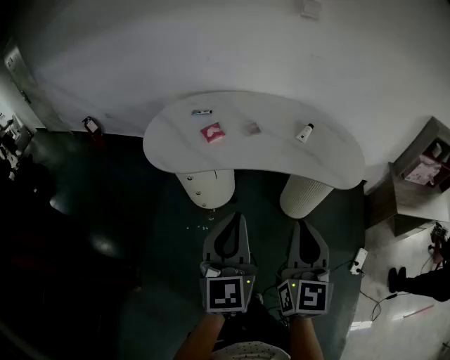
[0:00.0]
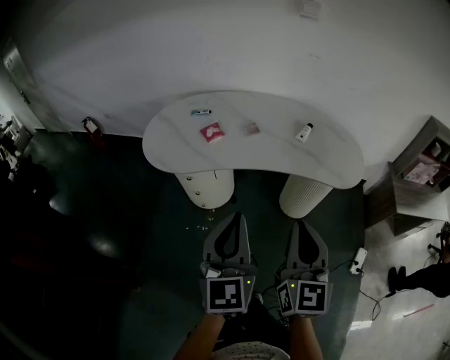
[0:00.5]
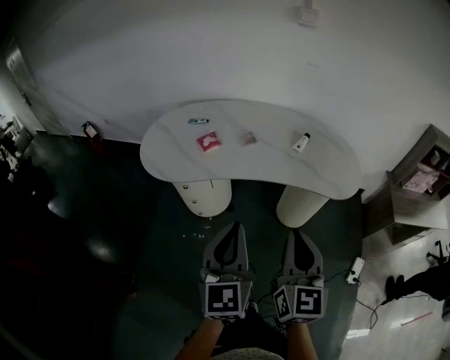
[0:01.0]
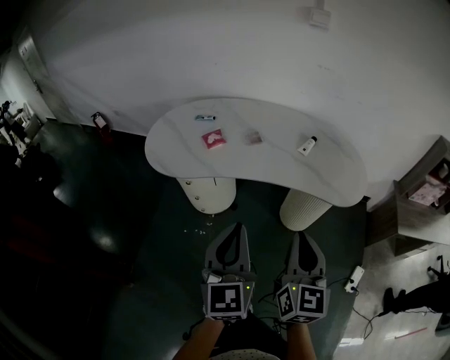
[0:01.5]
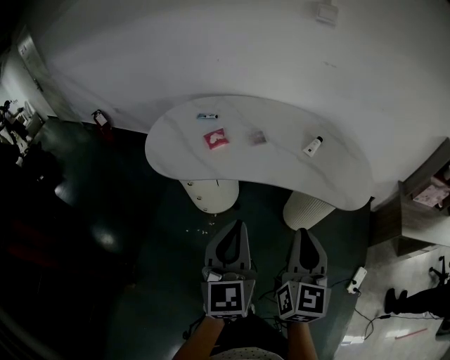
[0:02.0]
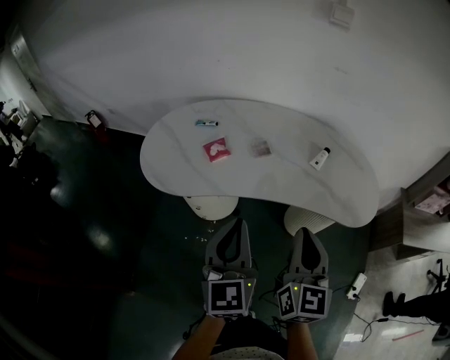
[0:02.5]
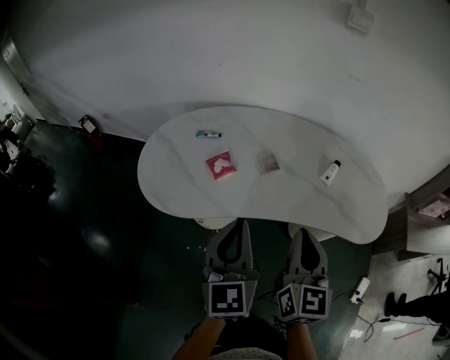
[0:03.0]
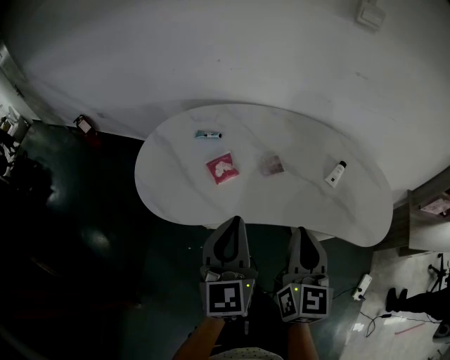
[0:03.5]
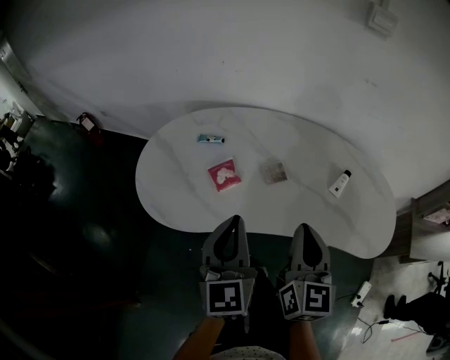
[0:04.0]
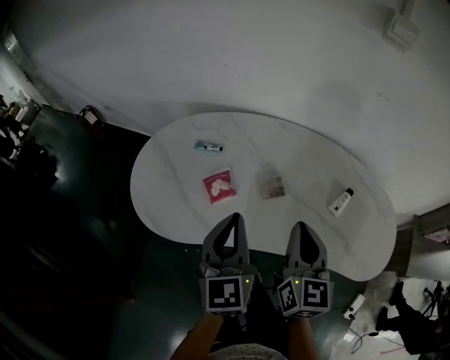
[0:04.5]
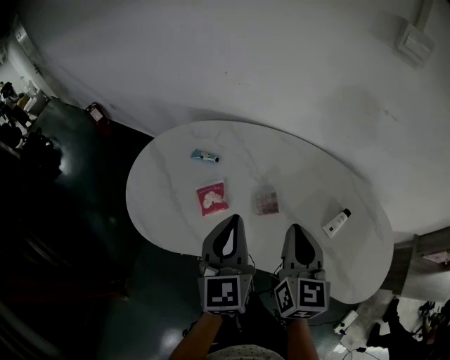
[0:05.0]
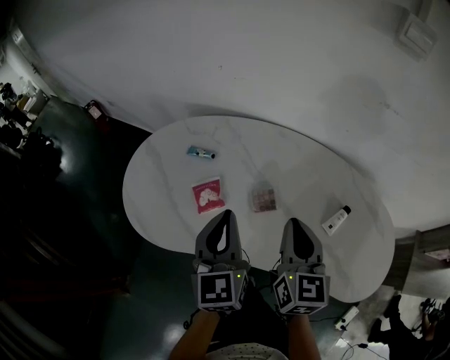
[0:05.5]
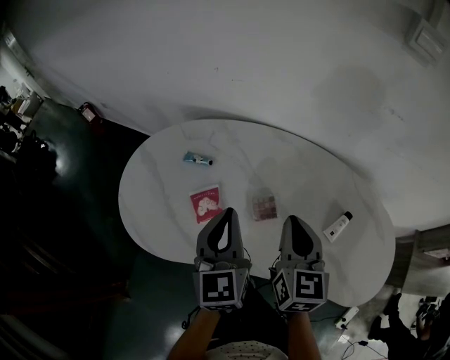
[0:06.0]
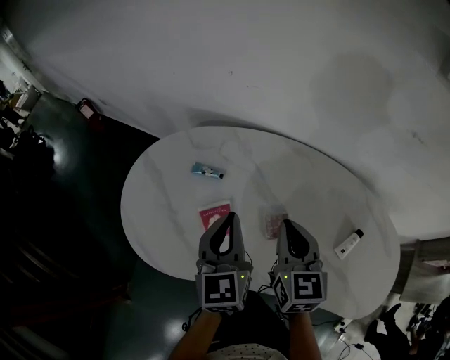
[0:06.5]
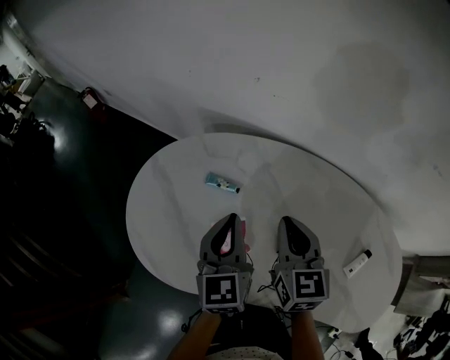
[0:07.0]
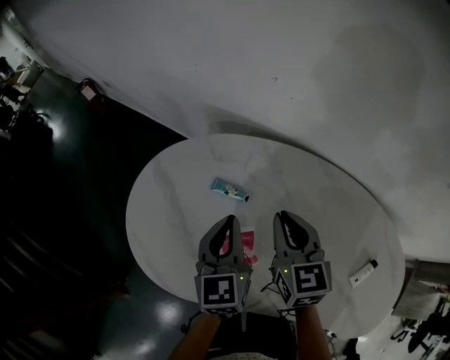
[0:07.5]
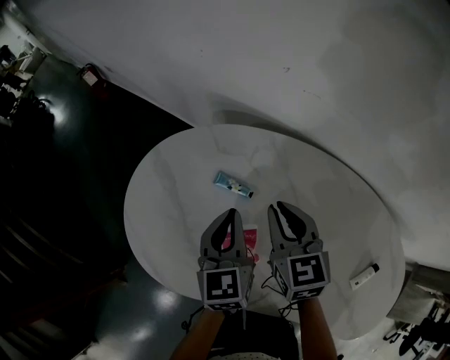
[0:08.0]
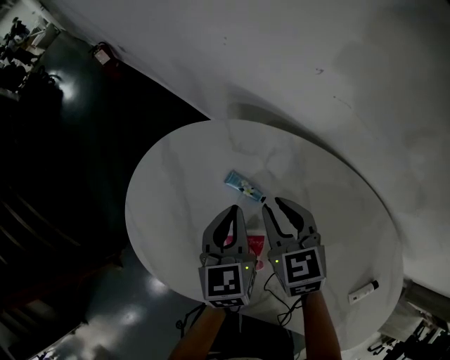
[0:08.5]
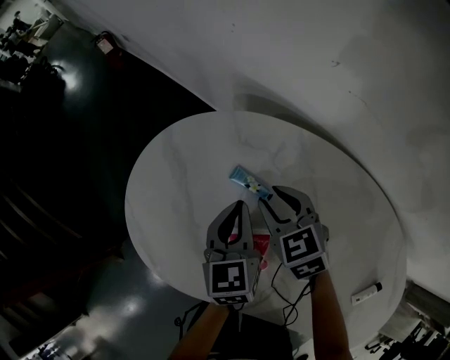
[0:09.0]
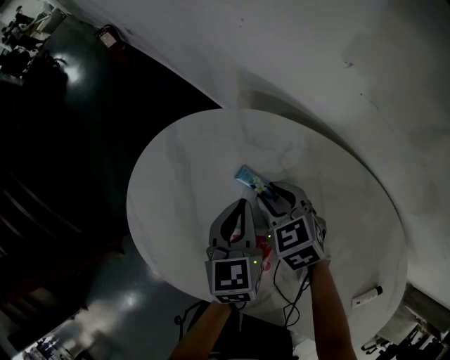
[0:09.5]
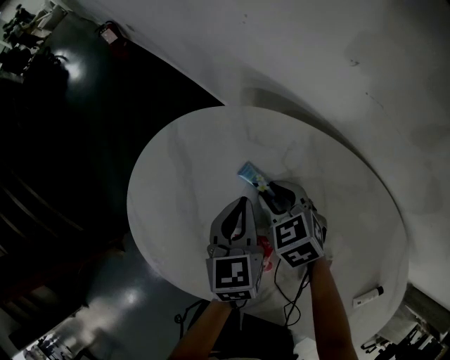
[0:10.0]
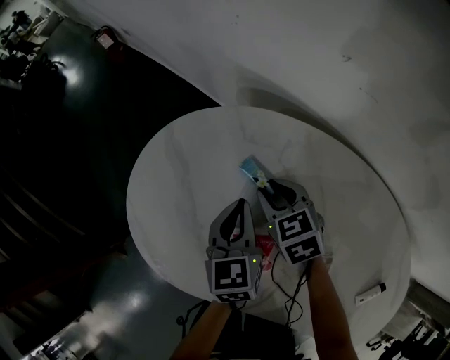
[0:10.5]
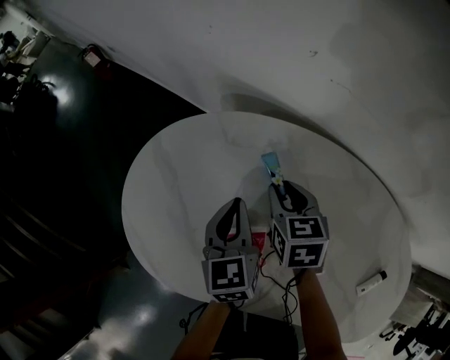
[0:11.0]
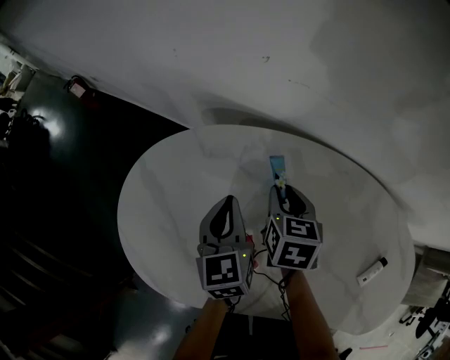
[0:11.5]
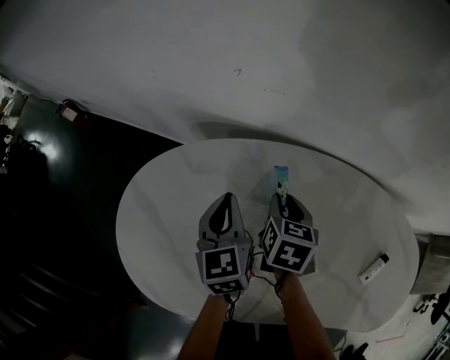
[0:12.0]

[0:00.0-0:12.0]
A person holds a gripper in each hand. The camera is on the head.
0:00.0 to 0:02.0: The grippers both shift forward by about 5 cm.
0:02.0 to 0:04.0: The grippers both shift forward by about 25 cm.
0:04.0 to 0:06.0: The two grippers go about 20 cm forward.
0:06.0 to 0:08.0: The right gripper travels forward and to the left by about 25 cm, and rotates roughly 30 degrees; the left gripper is displaced forward, to the left and downward by roughly 25 cm.
0:08.0 to 0:10.0: The right gripper is displaced downward, to the left and forward by some 15 cm, and rotates about 40 degrees; the left gripper moves downward, some 5 cm.
0:10.0 to 0:12.0: The right gripper shifts by some 20 cm, and twists roughly 60 degrees clockwise, seen from behind. Meanwhile the left gripper ends up roughly 10 cm from where it was.

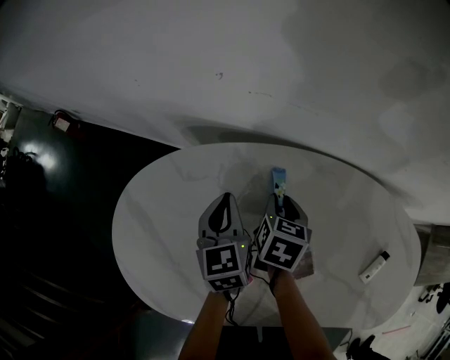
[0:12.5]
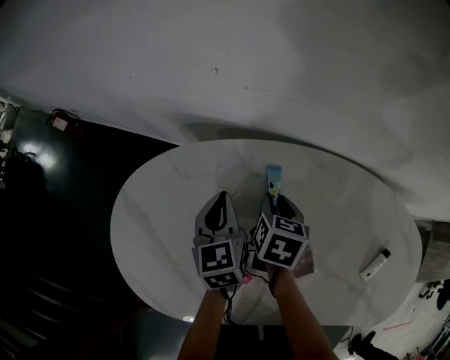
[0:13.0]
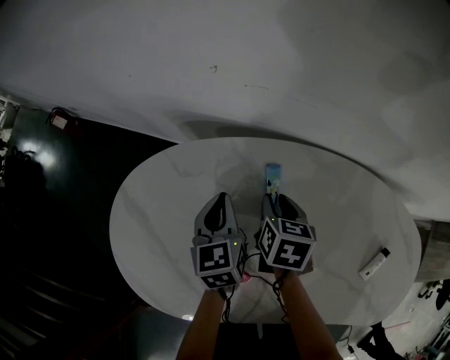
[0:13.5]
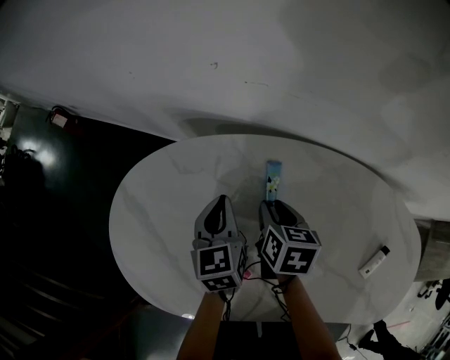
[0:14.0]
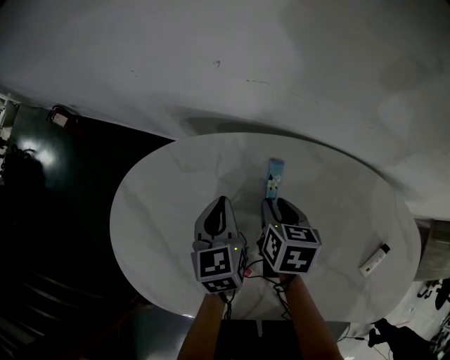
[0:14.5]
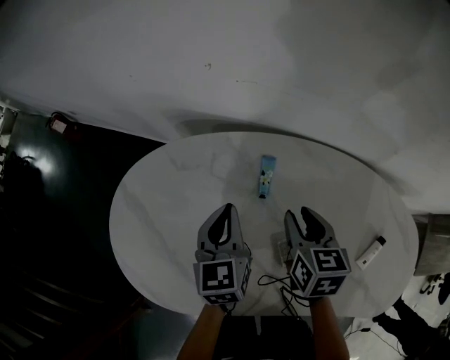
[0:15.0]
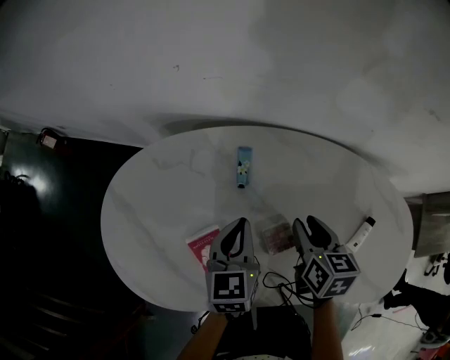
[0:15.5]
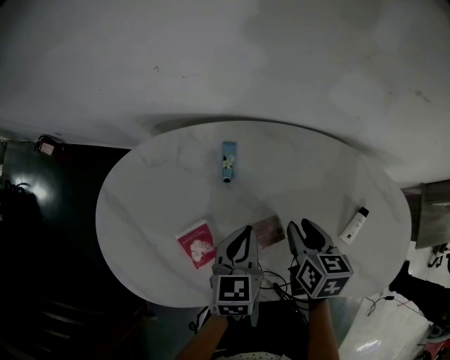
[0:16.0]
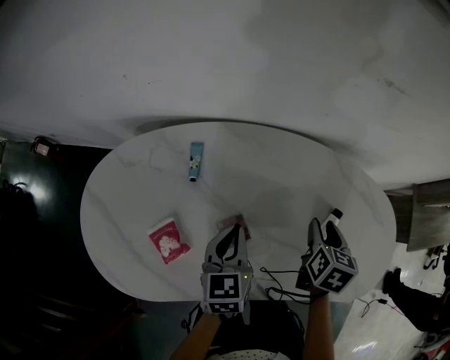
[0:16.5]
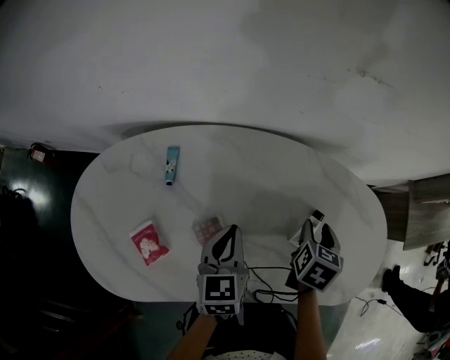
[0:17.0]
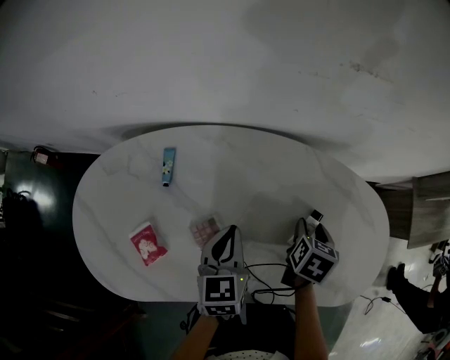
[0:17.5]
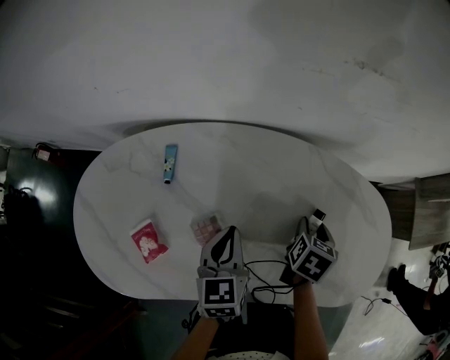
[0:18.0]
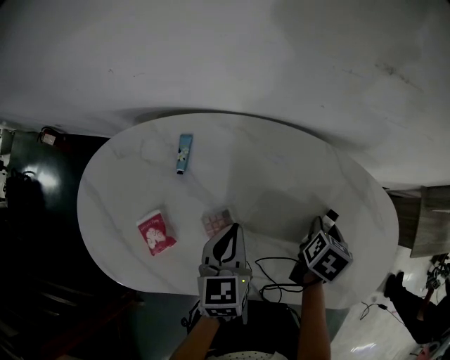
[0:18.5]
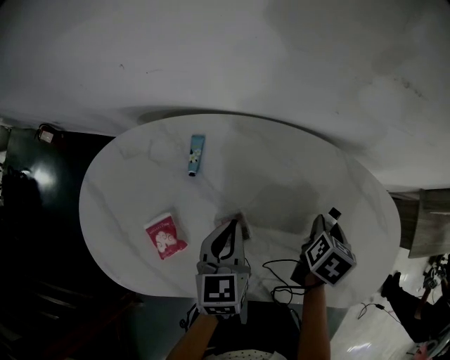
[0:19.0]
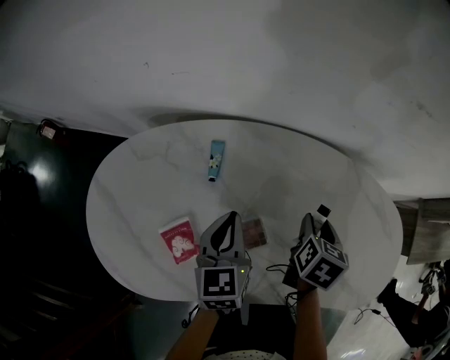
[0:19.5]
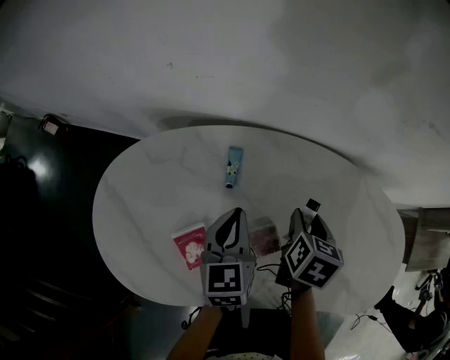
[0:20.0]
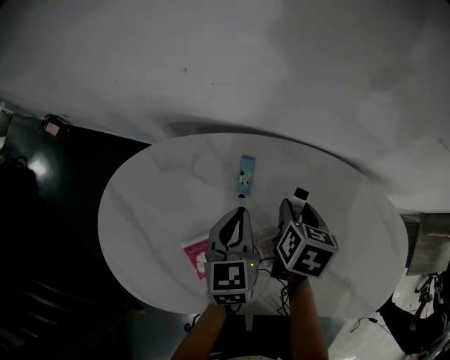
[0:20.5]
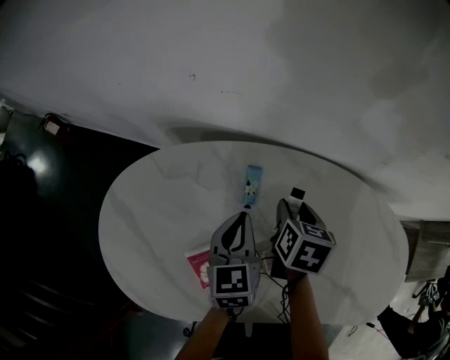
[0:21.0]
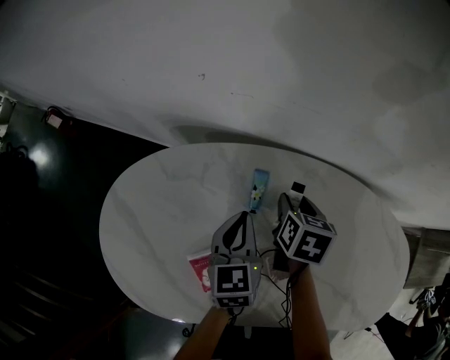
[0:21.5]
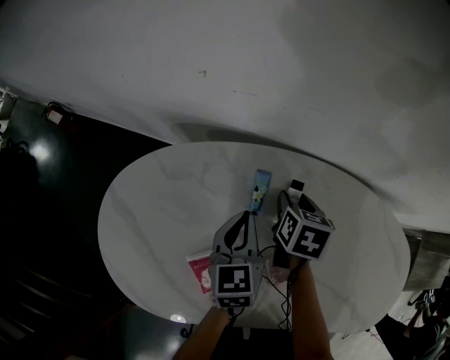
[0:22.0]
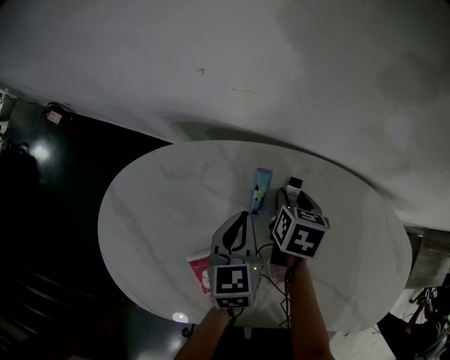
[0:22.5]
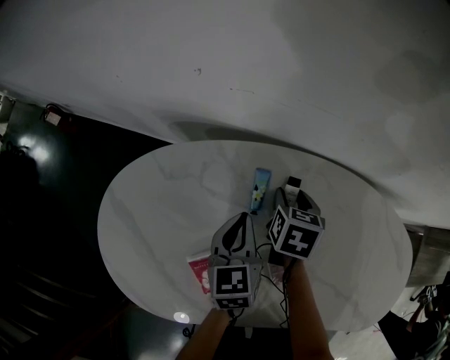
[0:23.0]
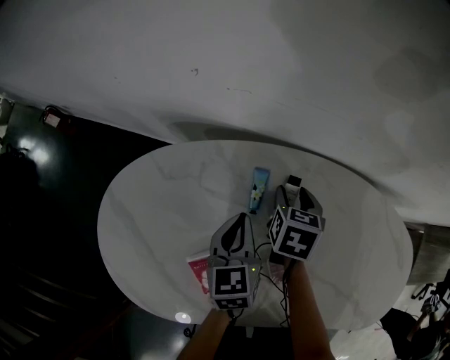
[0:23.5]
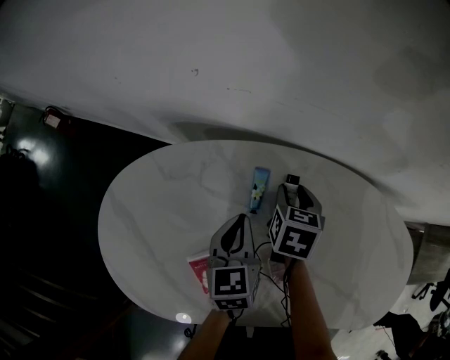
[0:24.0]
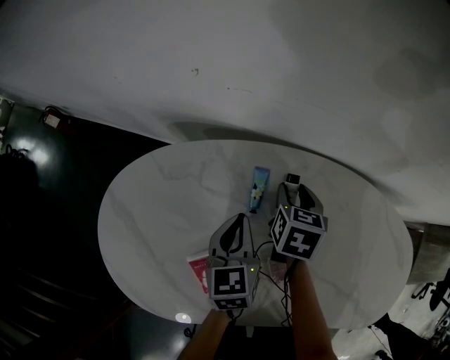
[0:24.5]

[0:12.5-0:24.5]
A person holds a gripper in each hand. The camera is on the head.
0:12.5 to 0:14.5: The grippers make only small movements.
0:14.5 to 0:16.5: The left gripper moves about 25 cm, and rotates roughly 20 degrees. The right gripper moves roughly 35 cm, and rotates approximately 30 degrees.
0:16.5 to 0:18.5: The right gripper moves downward and to the right, about 10 cm.
0:18.5 to 0:20.5: The right gripper moves to the left, approximately 30 cm, and changes its angle by approximately 20 degrees. Meanwhile the left gripper shifts approximately 15 cm to the left.
0:20.5 to 0:22.5: The left gripper moves about 5 cm. Meanwhile the right gripper goes roughly 10 cm forward and downward.
0:22.5 to 0:24.5: The grippers move only a little.

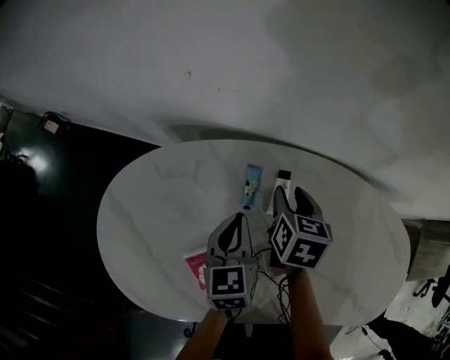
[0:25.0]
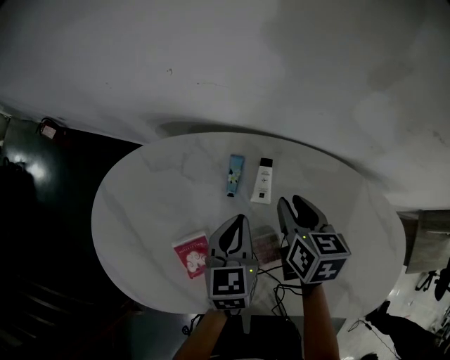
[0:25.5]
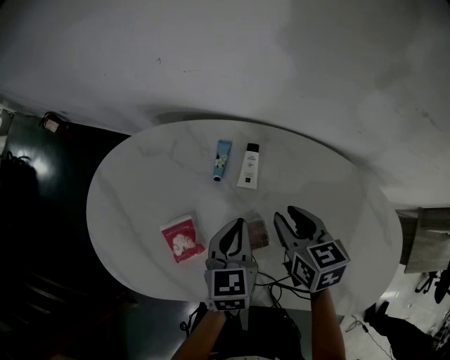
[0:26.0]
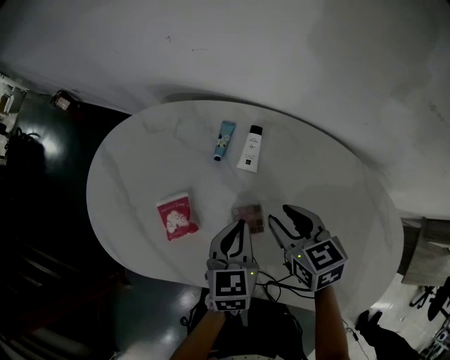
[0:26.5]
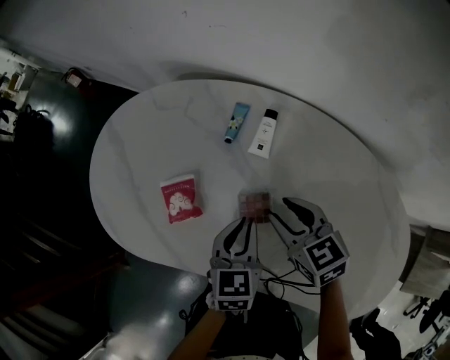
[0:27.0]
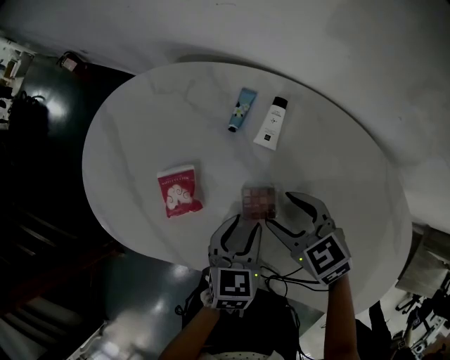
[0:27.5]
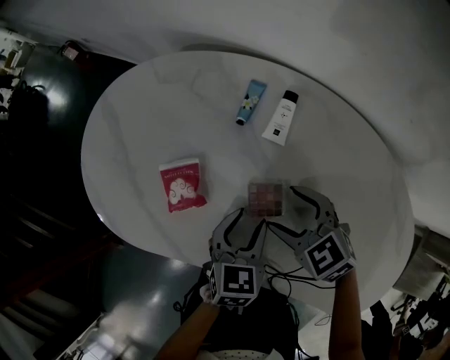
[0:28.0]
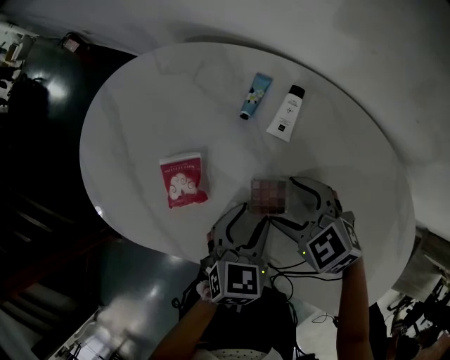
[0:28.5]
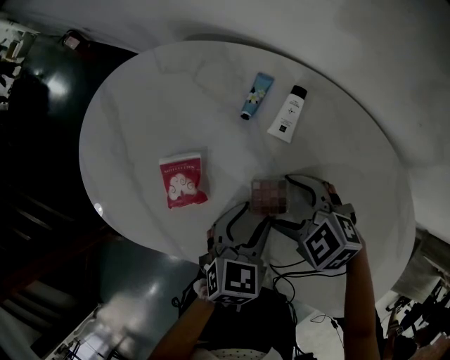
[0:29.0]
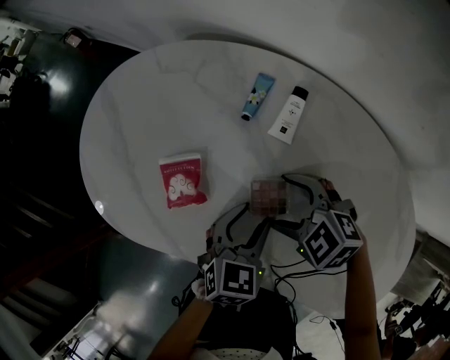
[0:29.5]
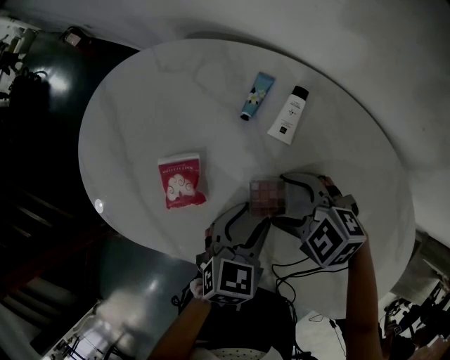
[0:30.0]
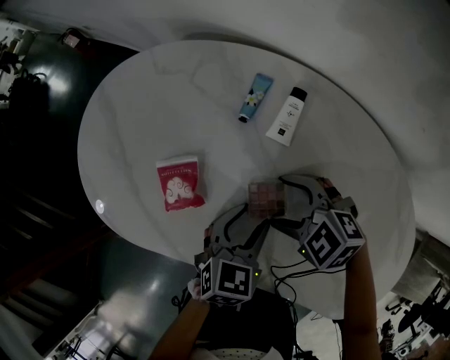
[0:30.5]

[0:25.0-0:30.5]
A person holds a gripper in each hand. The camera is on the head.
0:25.0 to 0:27.0: The right gripper changes place by about 20 cm, and turns by roughly 50 degrees; the left gripper moves about 20 cm.
0:27.0 to 0:28.5: The left gripper opens up. Meanwhile the right gripper changes place by approximately 5 cm, swivels about 30 degrees, and opens up.
0:28.5 to 0:30.5: There are only small adjustments of the grippers.
